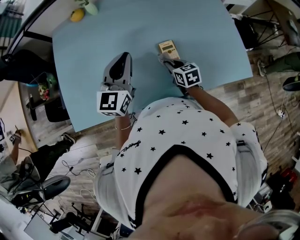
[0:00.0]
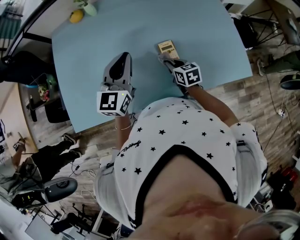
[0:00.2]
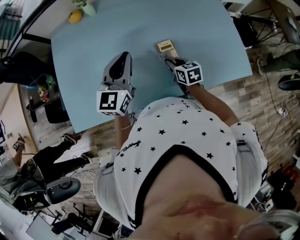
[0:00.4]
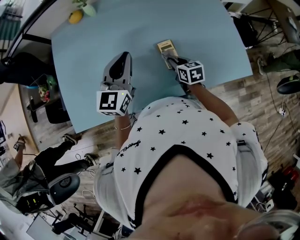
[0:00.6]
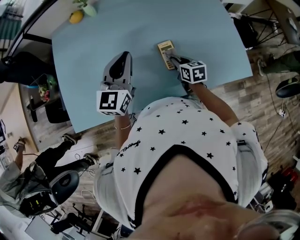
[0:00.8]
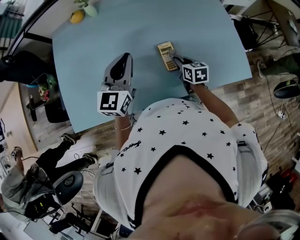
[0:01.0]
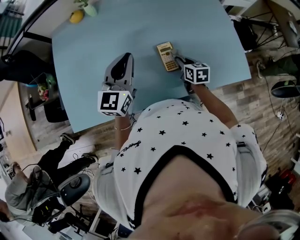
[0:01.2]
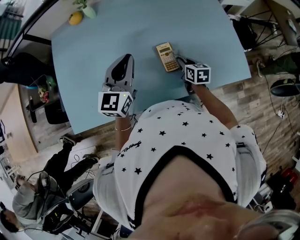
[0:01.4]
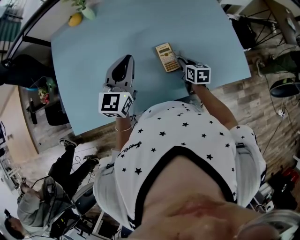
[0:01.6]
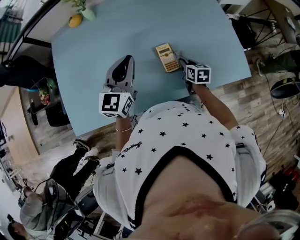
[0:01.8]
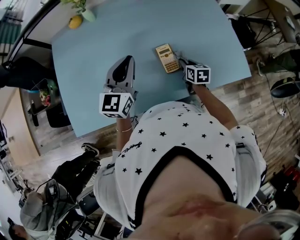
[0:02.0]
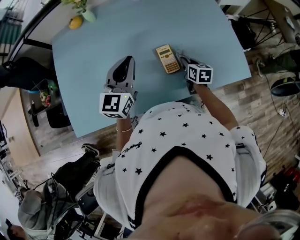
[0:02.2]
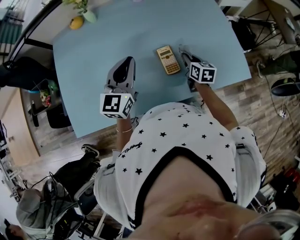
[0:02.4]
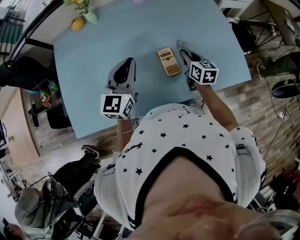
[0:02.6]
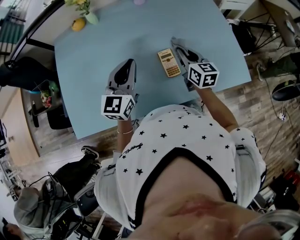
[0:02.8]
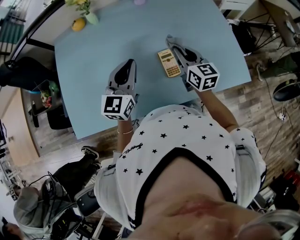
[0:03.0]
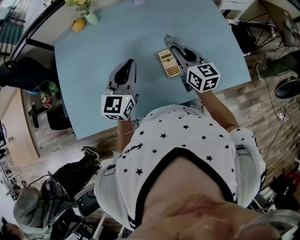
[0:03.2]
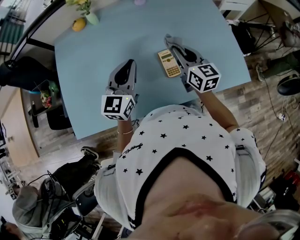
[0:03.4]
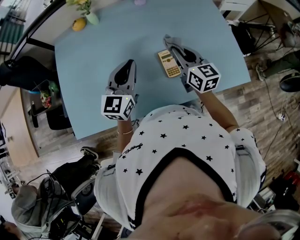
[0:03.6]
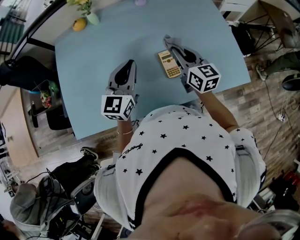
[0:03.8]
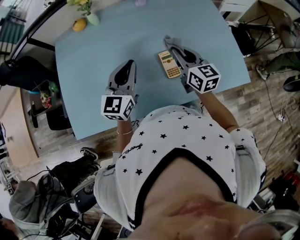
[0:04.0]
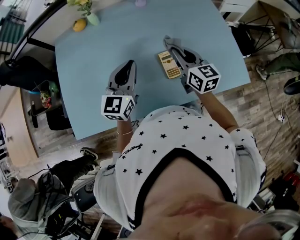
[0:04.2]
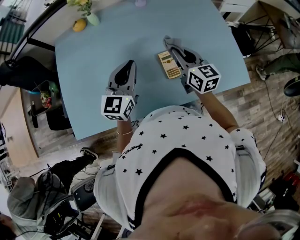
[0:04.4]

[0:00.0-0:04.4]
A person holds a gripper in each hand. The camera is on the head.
0:00.0 to 0:01.4: The right gripper shifts some 10 cm to the right.
0:01.4 to 0:03.0: The right gripper shifts roughly 15 cm upward, and changes its angle by approximately 30 degrees.
0:03.0 to 0:04.4: There are only small adjustments of the grippers.

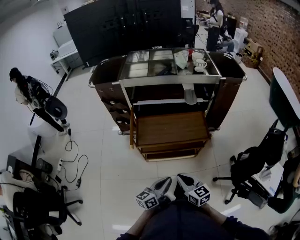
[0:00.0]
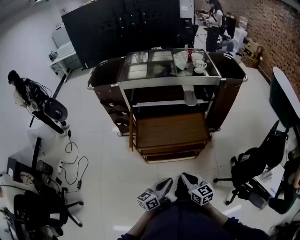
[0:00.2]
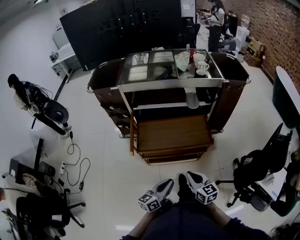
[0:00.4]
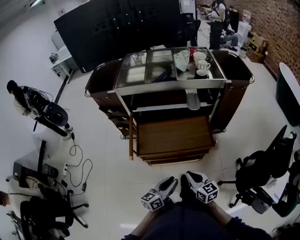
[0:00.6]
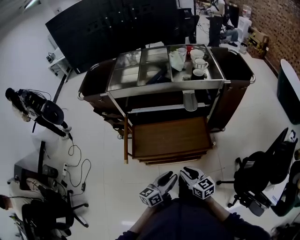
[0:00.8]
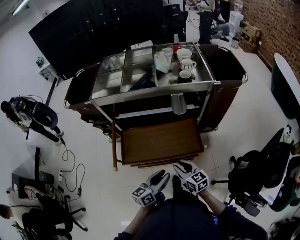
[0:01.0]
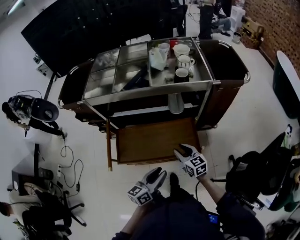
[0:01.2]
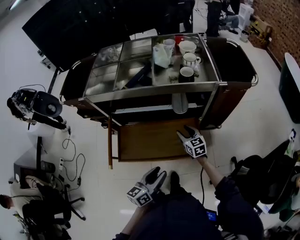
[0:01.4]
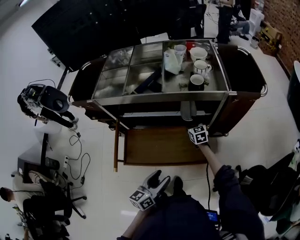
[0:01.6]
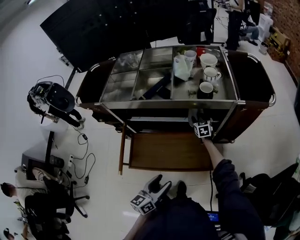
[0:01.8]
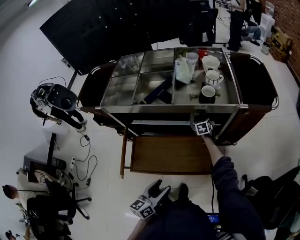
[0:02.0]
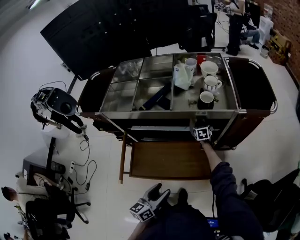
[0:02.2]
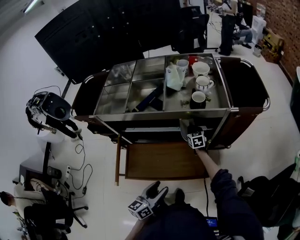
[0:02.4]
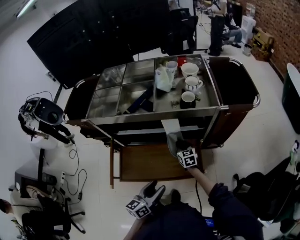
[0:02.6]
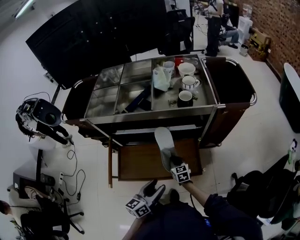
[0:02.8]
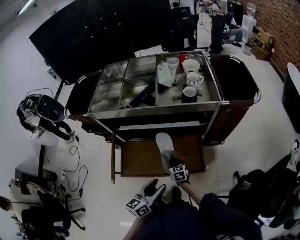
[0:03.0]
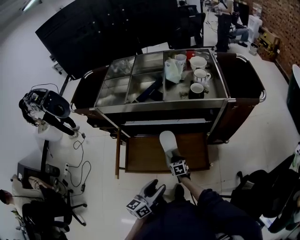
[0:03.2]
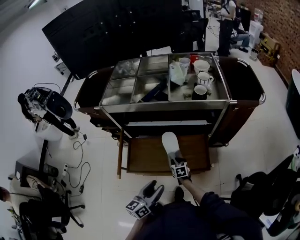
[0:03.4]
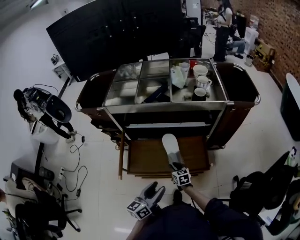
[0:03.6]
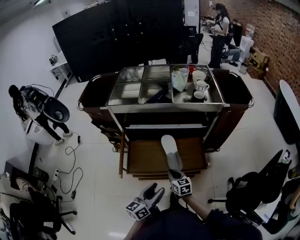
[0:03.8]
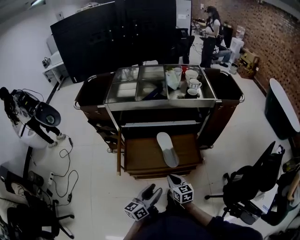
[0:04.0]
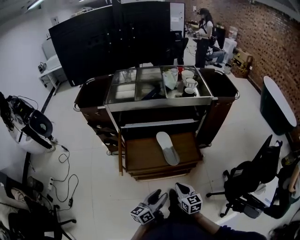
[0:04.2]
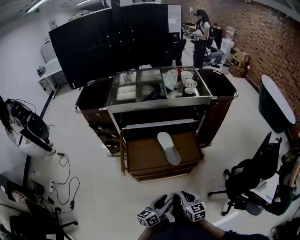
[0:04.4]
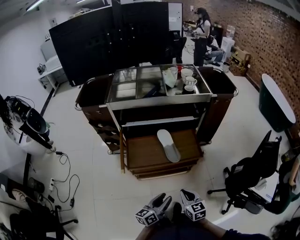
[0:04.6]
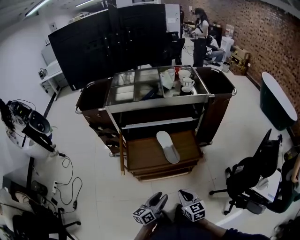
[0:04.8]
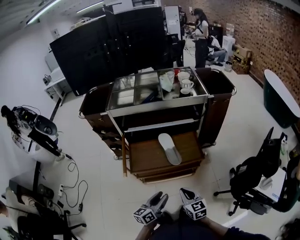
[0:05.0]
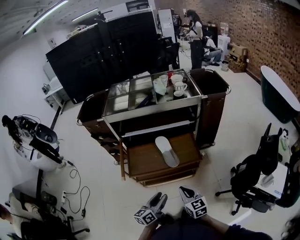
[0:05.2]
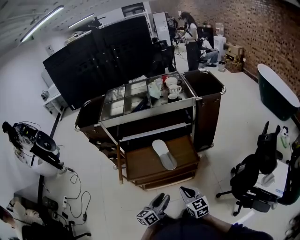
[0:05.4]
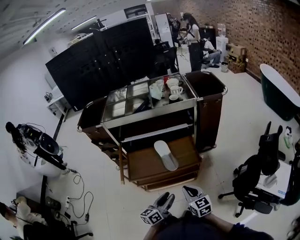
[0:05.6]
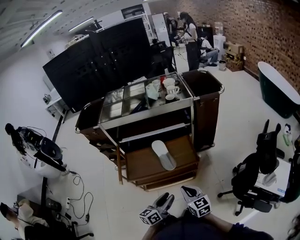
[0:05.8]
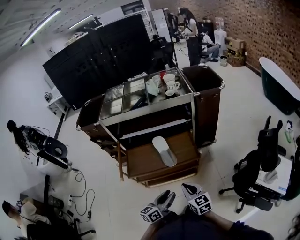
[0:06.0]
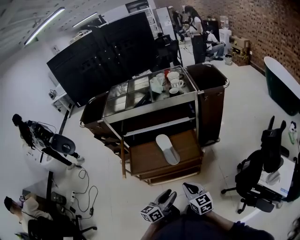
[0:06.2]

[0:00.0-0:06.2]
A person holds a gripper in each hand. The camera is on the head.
0:00.0 to 0:01.6: The left gripper travels forward by about 25 cm, and opens; the right gripper shifts about 60 cm forward, and opens its fingers.
0:01.6 to 0:03.2: The right gripper shifts some 25 cm backward, downward and to the left, and closes.
0:03.2 to 0:04.6: The left gripper heads backward, covering some 20 cm. Meanwhile the right gripper shifts approximately 40 cm backward and upward.
0:04.6 to 0:06.2: The grippers both shift to the right by some 10 cm.

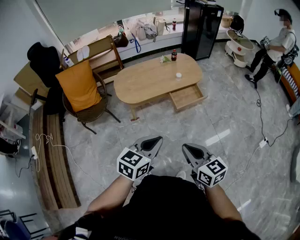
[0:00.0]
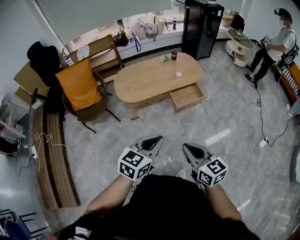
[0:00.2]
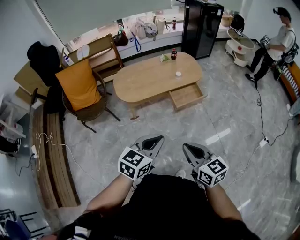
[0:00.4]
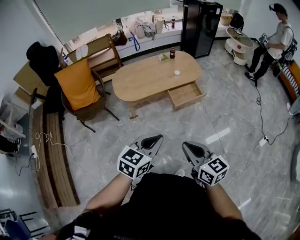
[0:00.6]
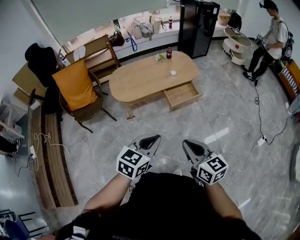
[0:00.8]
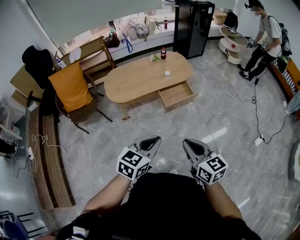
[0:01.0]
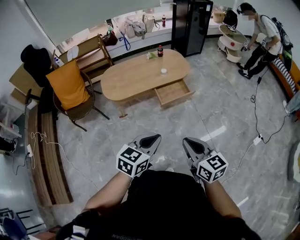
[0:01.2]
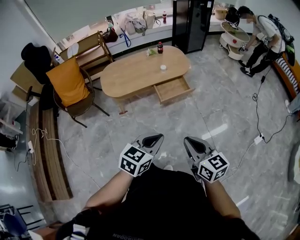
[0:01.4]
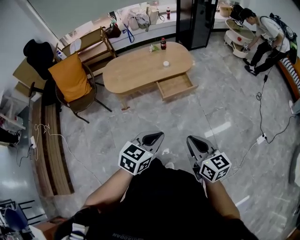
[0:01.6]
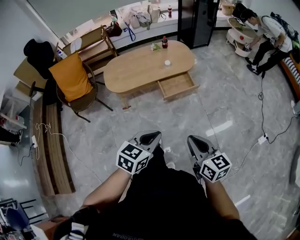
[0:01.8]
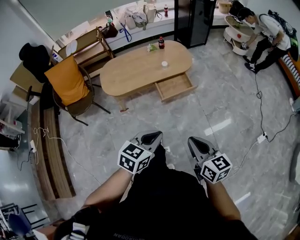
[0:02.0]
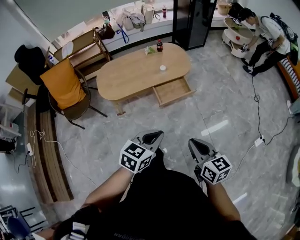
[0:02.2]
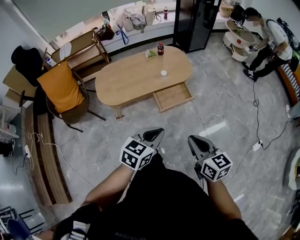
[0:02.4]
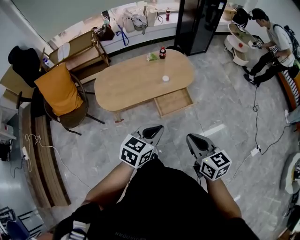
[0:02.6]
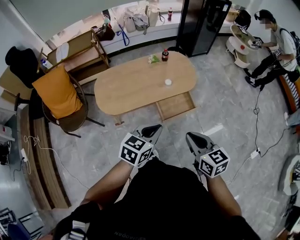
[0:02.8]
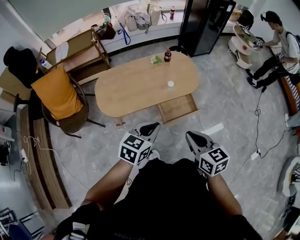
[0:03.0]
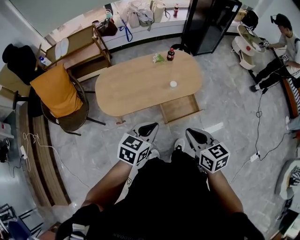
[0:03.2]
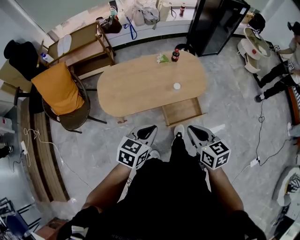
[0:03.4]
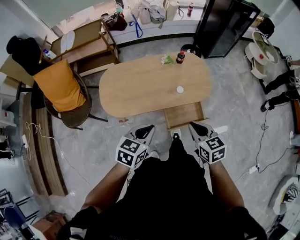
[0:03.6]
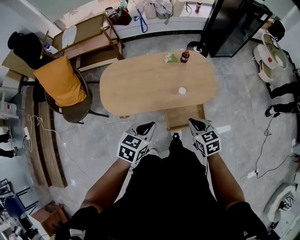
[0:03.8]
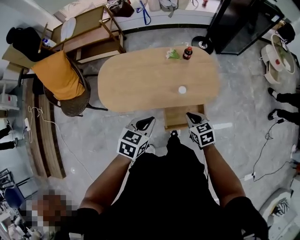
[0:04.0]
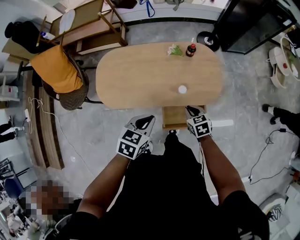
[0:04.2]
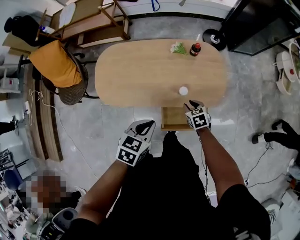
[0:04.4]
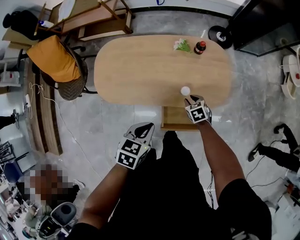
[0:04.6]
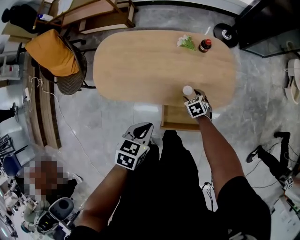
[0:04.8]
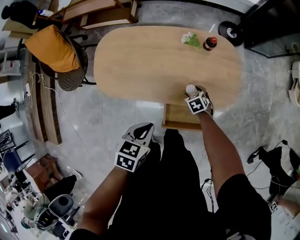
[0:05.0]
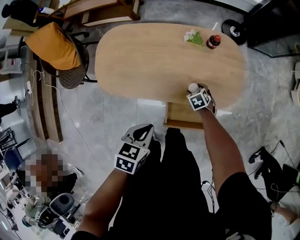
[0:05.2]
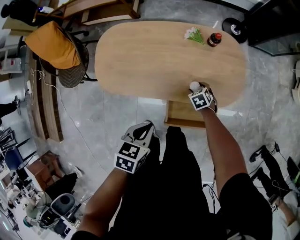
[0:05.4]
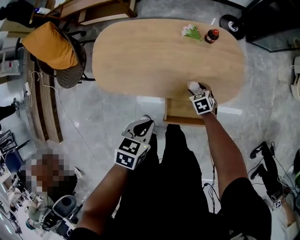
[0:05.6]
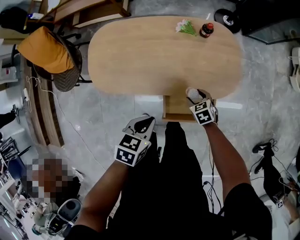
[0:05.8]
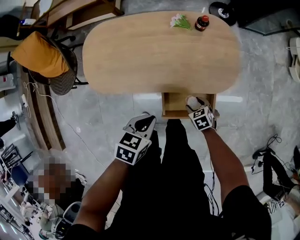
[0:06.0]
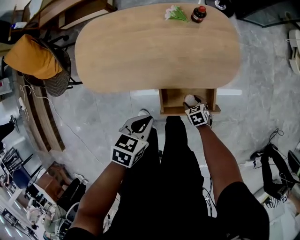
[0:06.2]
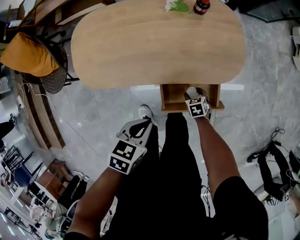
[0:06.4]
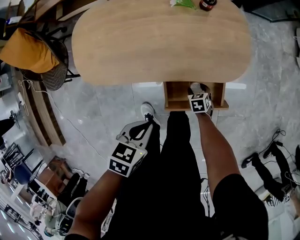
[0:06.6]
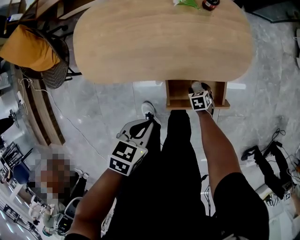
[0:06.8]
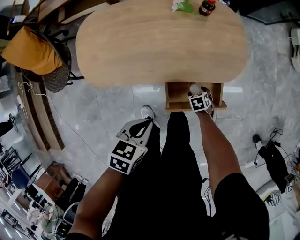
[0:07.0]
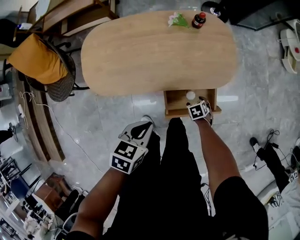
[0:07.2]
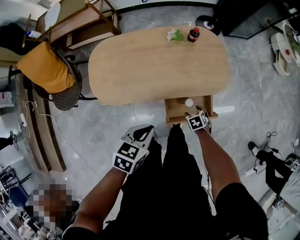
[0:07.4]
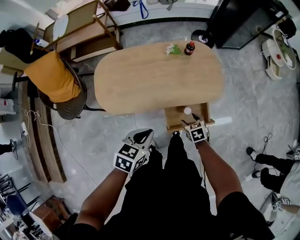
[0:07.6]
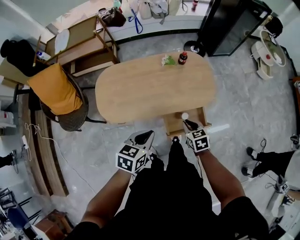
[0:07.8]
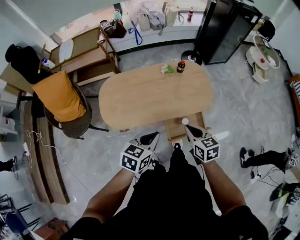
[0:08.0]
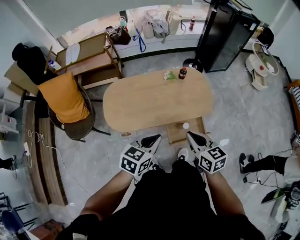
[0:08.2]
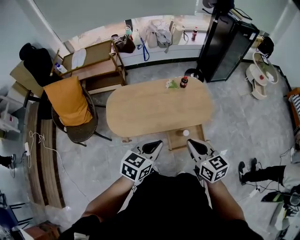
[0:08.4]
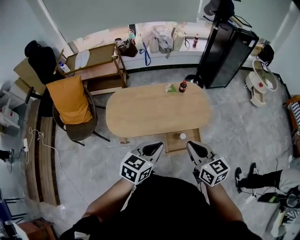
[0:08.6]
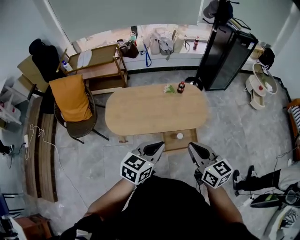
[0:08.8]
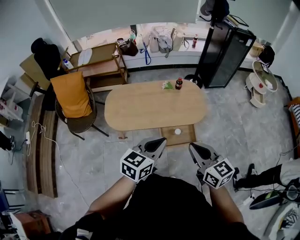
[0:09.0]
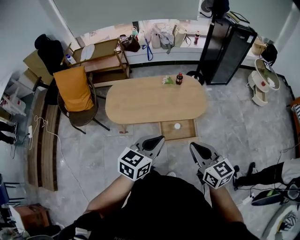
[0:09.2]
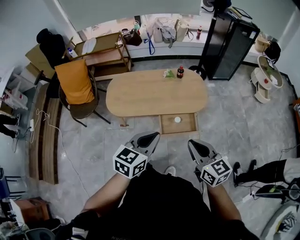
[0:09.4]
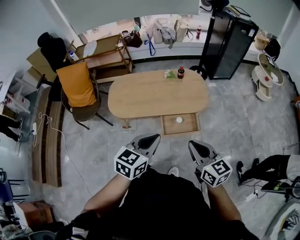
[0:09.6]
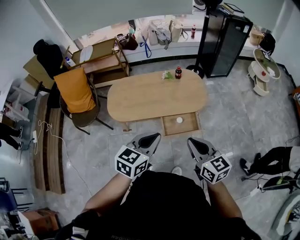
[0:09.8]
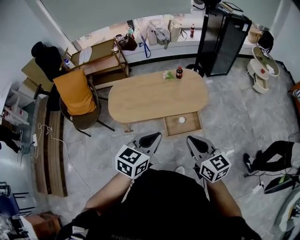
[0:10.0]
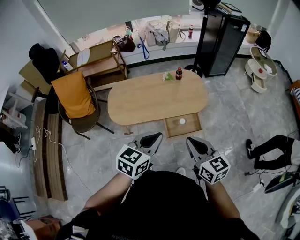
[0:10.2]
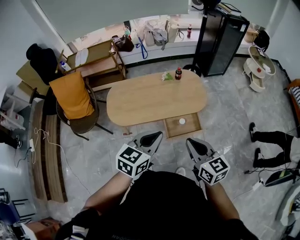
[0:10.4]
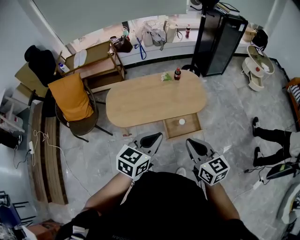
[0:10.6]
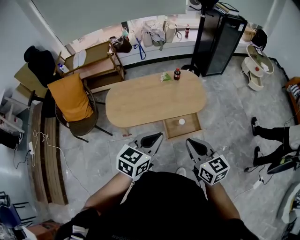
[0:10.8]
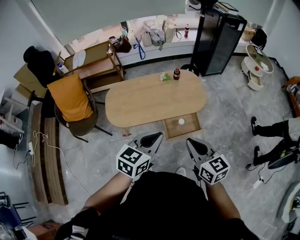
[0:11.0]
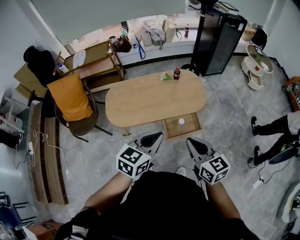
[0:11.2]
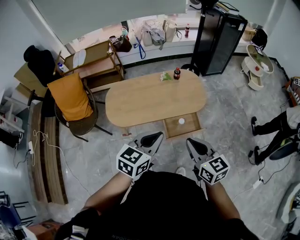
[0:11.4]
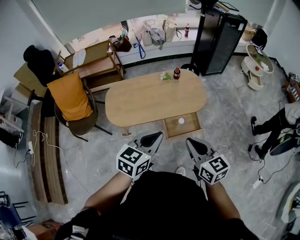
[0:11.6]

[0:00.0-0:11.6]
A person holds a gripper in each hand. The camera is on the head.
0:00.0 to 0:01.4: Both grippers move to the right, roughly 20 cm.
0:01.4 to 0:02.8: Both grippers move forward, some 30 cm.
0:02.8 to 0:04.4: The left gripper moves forward and downward, approximately 30 cm, and rotates about 30 degrees. Meanwhile the right gripper heads forward and downward, covering roughly 60 cm, points its fingers approximately 30 degrees further downward, and opens.
0:04.4 to 0:05.8: Both grippers move downward, approximately 10 cm. The right gripper opens.
0:05.8 to 0:07.2: The left gripper ends up about 5 cm from where it was. Meanwhile the right gripper shifts by about 15 cm, and changes its angle by approximately 20 degrees.
0:07.2 to 0:08.8: The left gripper goes about 30 cm upward, and tips its fingers upward by roughly 30 degrees. The right gripper shifts approximately 60 cm upward, tilts its fingers about 60 degrees upward, and closes its fingers.
0:08.8 to 0:10.2: The two grippers go about 5 cm backward.
0:10.2 to 0:11.6: The grippers stay close to where they were, moving slightly.

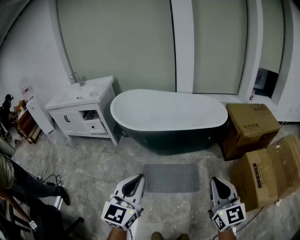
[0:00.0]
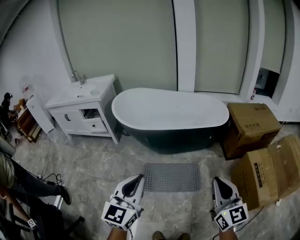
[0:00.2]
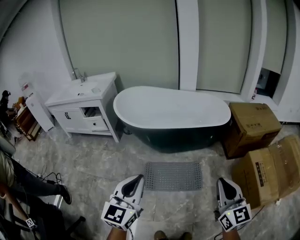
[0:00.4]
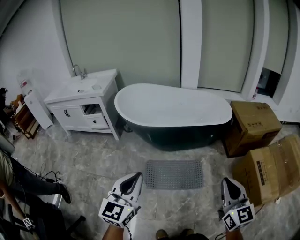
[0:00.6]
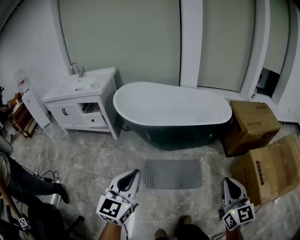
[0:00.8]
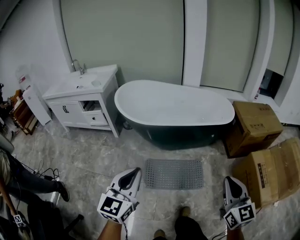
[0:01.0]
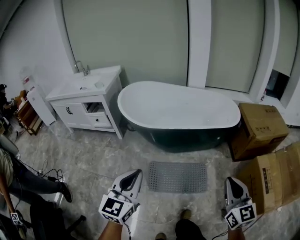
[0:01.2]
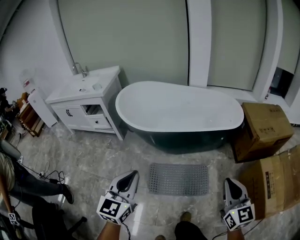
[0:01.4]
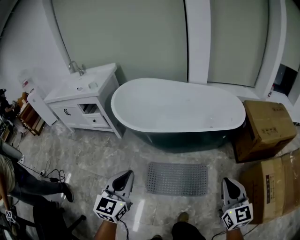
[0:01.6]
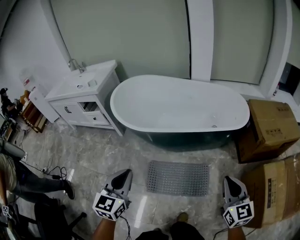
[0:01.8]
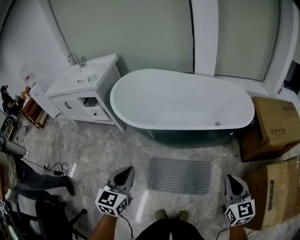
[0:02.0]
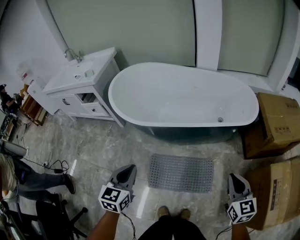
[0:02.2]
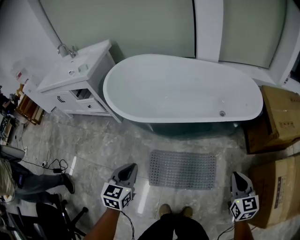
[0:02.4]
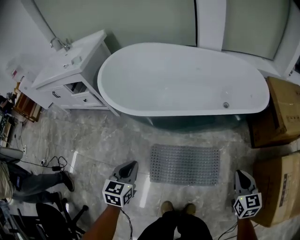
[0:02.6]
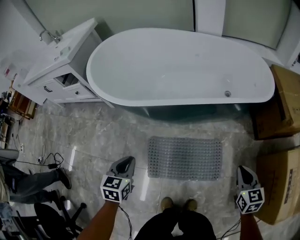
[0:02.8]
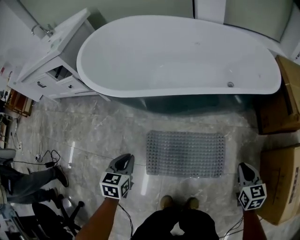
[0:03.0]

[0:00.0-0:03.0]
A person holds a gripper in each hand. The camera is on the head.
0:00.0 to 0:01.6: The left gripper travels forward, downward and to the left by about 20 cm. The right gripper travels forward and downward by roughly 20 cm.
0:01.6 to 0:03.0: Both grippers travel together downward, some 40 cm. The left gripper tilts its fingers roughly 30 degrees downward; the right gripper changes its angle by approximately 30 degrees.
